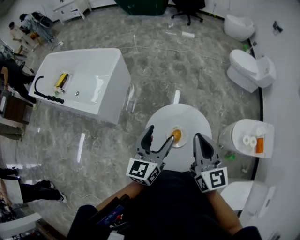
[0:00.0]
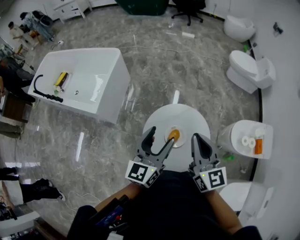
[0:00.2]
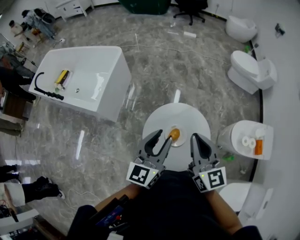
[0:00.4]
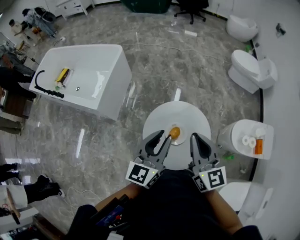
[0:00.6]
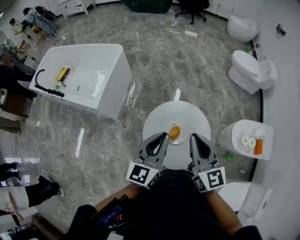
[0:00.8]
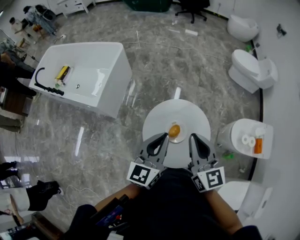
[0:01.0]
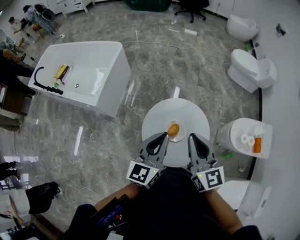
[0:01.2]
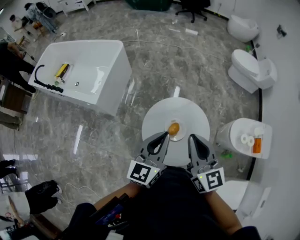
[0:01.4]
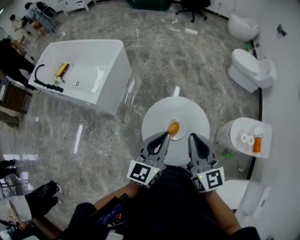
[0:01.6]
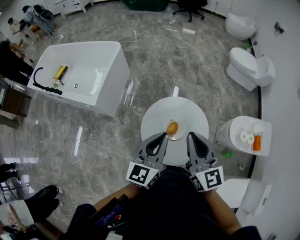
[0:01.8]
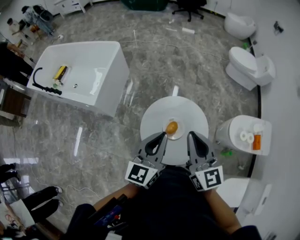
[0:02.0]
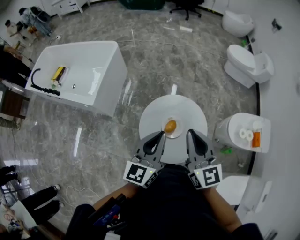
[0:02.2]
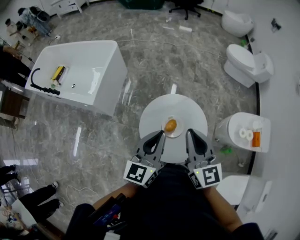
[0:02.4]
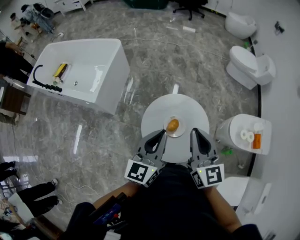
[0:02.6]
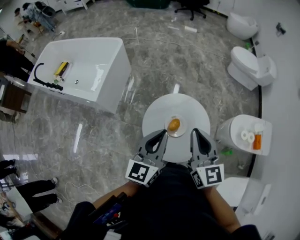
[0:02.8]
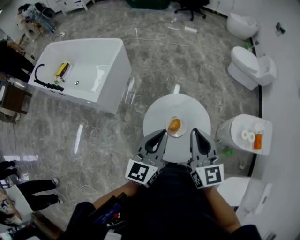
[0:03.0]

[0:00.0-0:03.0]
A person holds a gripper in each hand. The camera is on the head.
0:00.0 to 0:01.6: The left gripper heads backward, covering some 5 cm, and closes its fingers.
0:01.6 to 0:03.0: The grippers make only small movements.

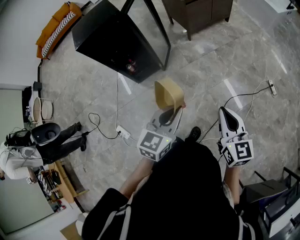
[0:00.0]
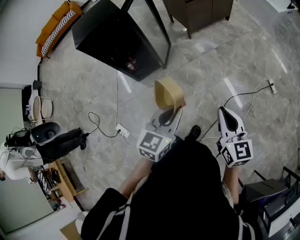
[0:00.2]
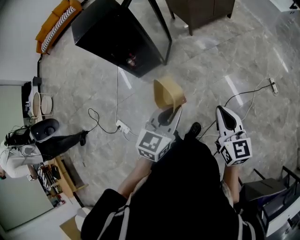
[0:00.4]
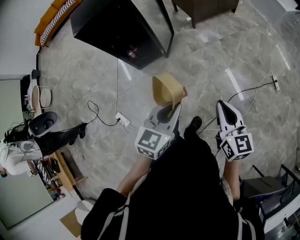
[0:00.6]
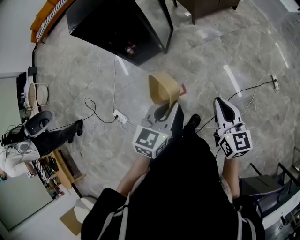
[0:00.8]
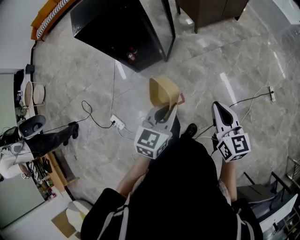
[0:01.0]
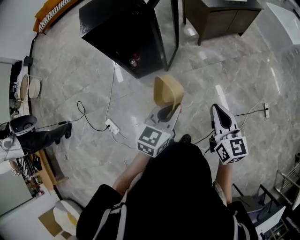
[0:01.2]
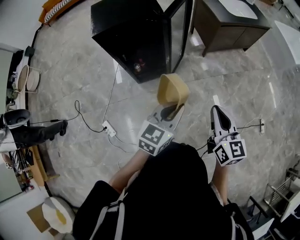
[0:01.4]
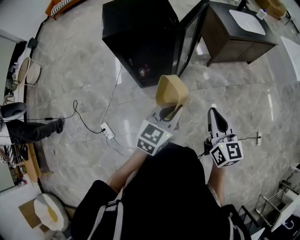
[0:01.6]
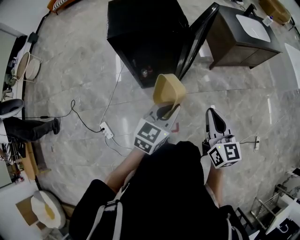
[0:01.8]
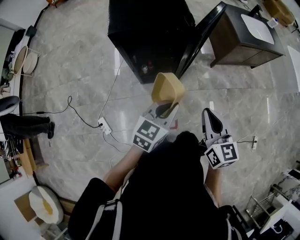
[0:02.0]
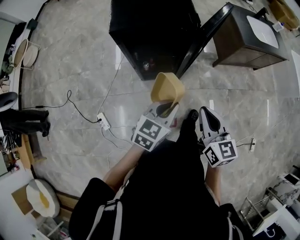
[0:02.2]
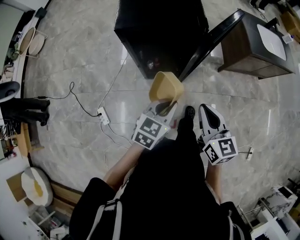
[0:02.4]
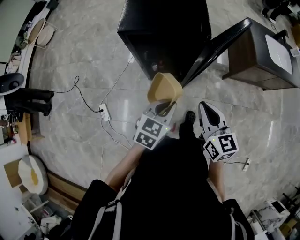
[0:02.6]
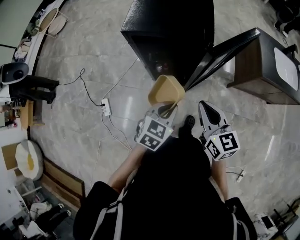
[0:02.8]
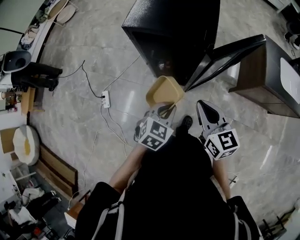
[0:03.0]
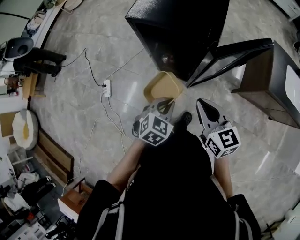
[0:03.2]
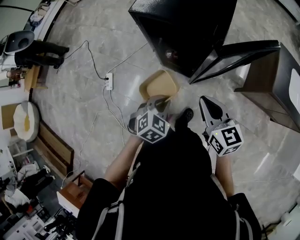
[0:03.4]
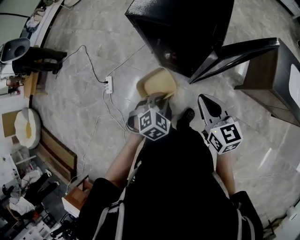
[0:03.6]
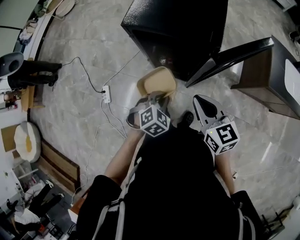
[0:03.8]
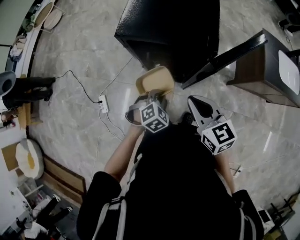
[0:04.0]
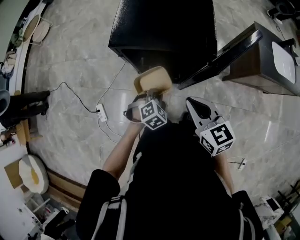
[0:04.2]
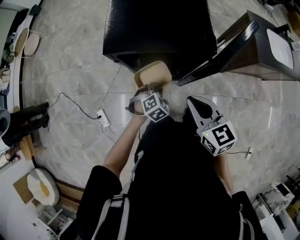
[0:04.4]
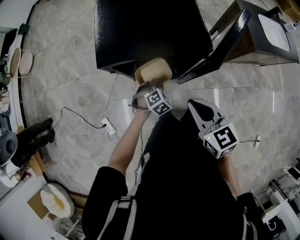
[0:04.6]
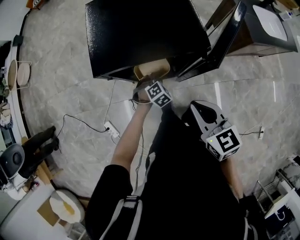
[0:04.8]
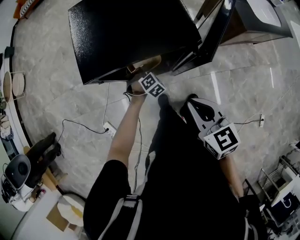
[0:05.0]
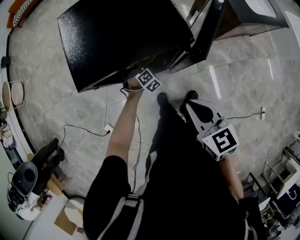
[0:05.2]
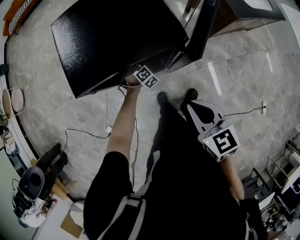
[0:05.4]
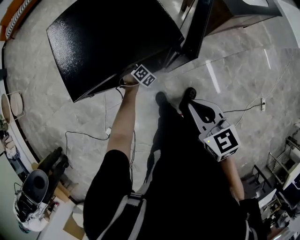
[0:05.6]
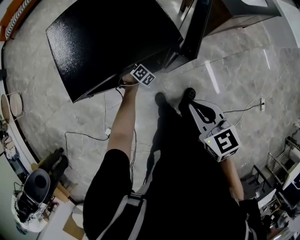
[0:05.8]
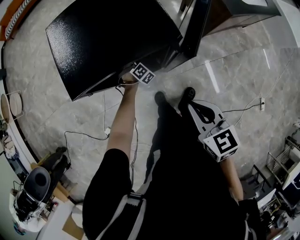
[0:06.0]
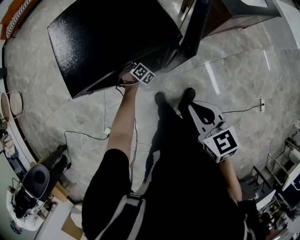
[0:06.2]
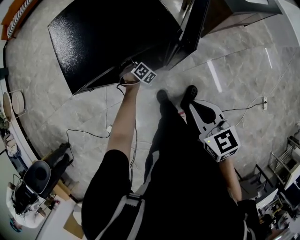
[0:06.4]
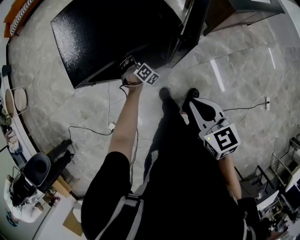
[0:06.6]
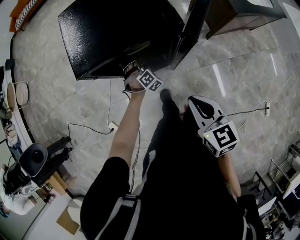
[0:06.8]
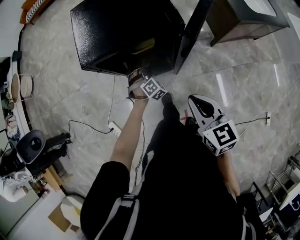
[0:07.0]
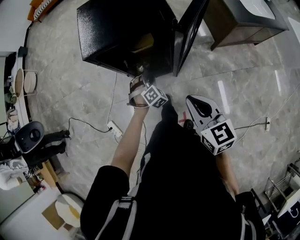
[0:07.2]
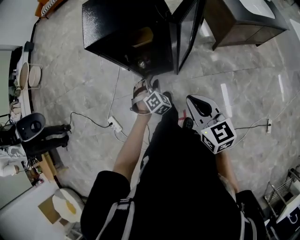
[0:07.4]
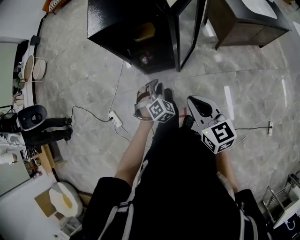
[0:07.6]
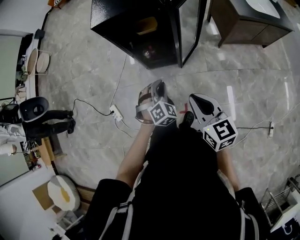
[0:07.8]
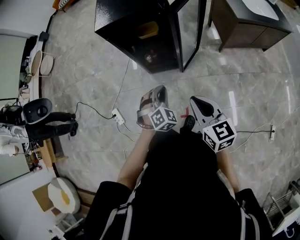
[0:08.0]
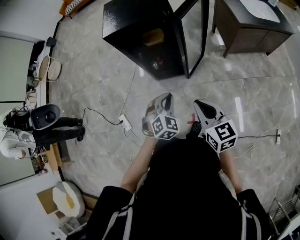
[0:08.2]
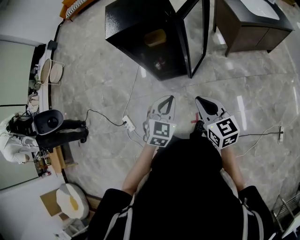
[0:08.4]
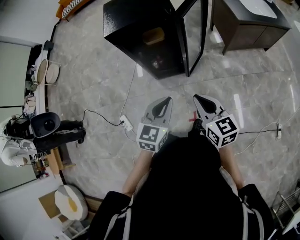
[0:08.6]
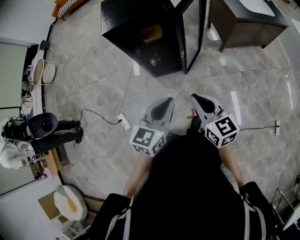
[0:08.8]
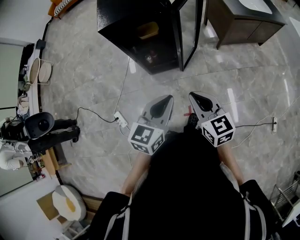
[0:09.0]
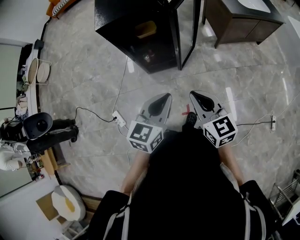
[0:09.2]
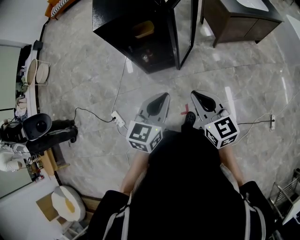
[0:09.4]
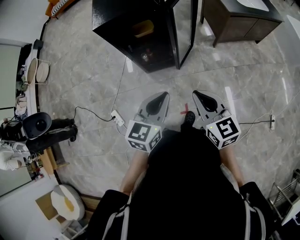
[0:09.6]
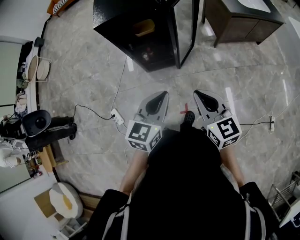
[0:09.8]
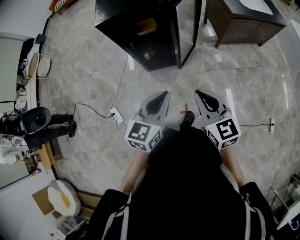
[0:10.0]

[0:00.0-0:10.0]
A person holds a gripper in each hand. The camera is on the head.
0:00.0 to 0:01.4: Both grippers travel together forward and to the left, approximately 25 cm.
0:01.4 to 0:02.8: The right gripper ends up some 30 cm from where it was, and swivels approximately 40 degrees, while the left gripper changes place by about 20 cm, and turns by approximately 30 degrees.
0:02.8 to 0:04.2: The right gripper goes roughly 10 cm forward and to the left; the left gripper is displaced downward and forward by roughly 20 cm, and swivels some 40 degrees.
0:04.2 to 0:05.8: The right gripper ends up about 5 cm from where it was, and turns by about 30 degrees. Meanwhile the left gripper moves forward and downward, about 30 cm, and turns by about 30 degrees.
0:05.8 to 0:07.2: The right gripper shifts approximately 10 cm backward. The left gripper is displaced backward and upward by roughly 25 cm, and opens its fingers.
0:07.2 to 0:08.6: The right gripper is displaced backward by some 15 cm. Meanwhile the left gripper goes some 40 cm backward and upward, rotates approximately 60 degrees, and closes up.
0:08.6 to 0:10.0: The right gripper changes place by roughly 5 cm.

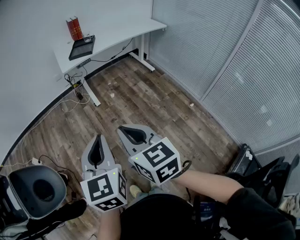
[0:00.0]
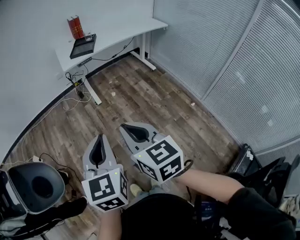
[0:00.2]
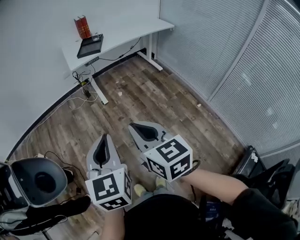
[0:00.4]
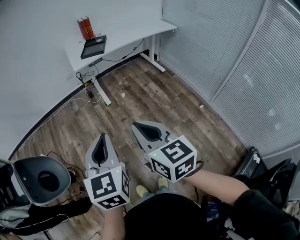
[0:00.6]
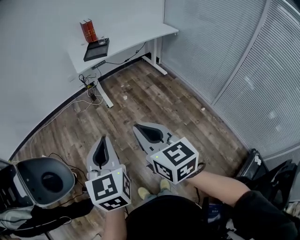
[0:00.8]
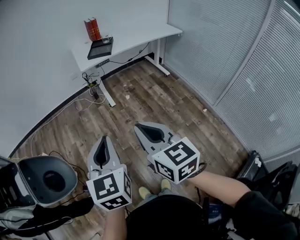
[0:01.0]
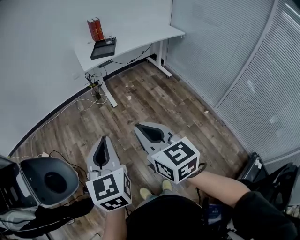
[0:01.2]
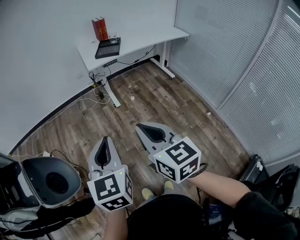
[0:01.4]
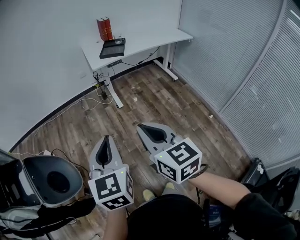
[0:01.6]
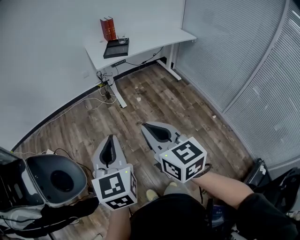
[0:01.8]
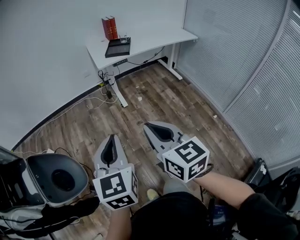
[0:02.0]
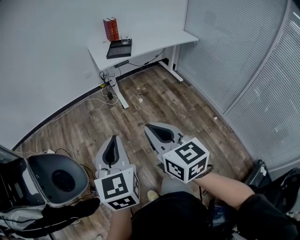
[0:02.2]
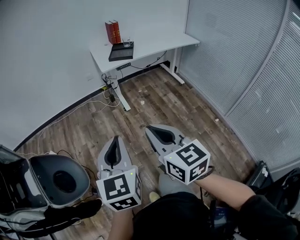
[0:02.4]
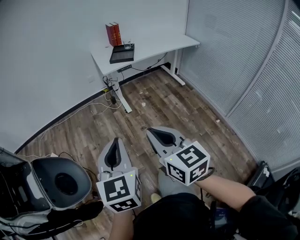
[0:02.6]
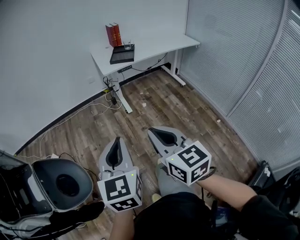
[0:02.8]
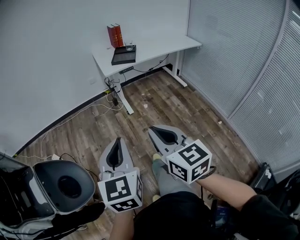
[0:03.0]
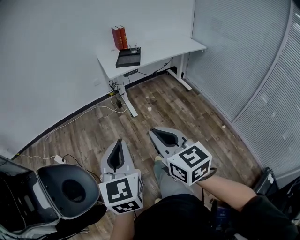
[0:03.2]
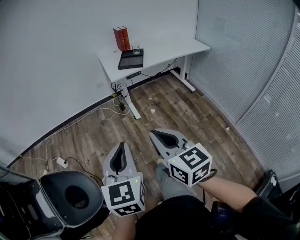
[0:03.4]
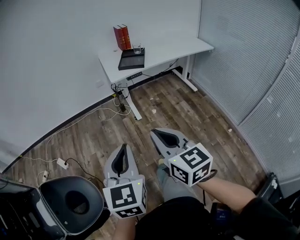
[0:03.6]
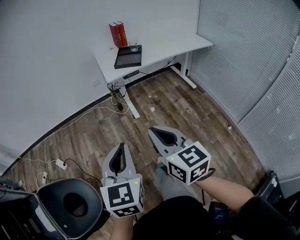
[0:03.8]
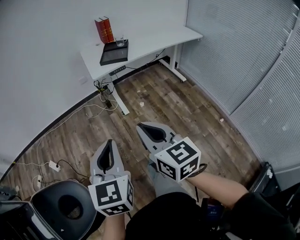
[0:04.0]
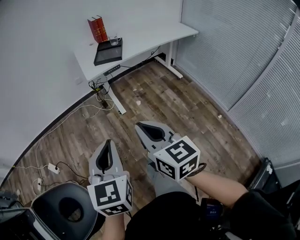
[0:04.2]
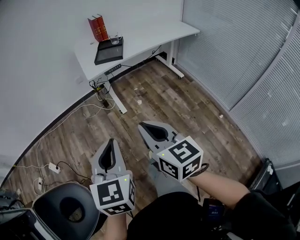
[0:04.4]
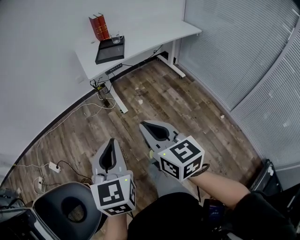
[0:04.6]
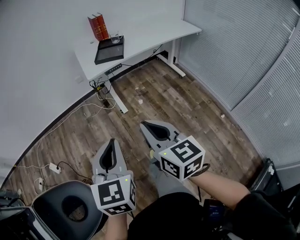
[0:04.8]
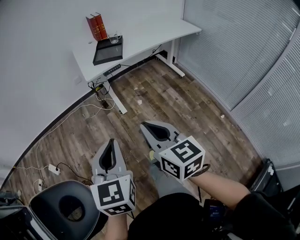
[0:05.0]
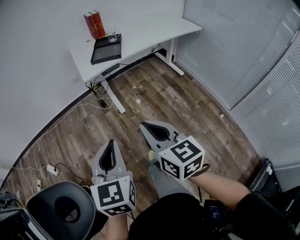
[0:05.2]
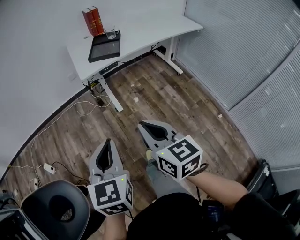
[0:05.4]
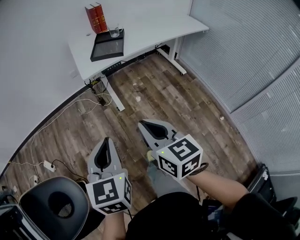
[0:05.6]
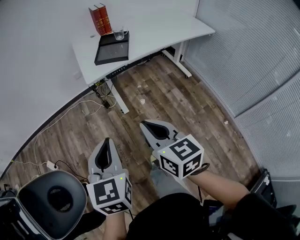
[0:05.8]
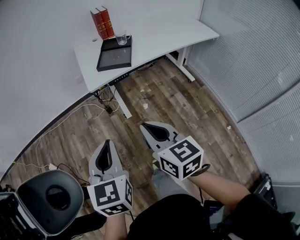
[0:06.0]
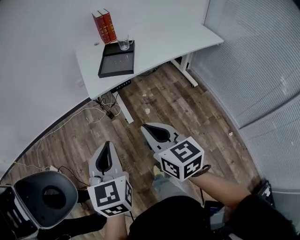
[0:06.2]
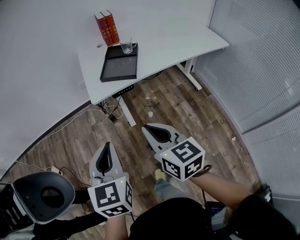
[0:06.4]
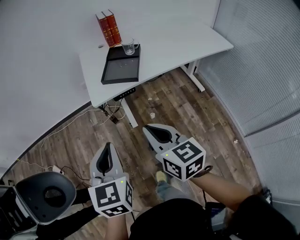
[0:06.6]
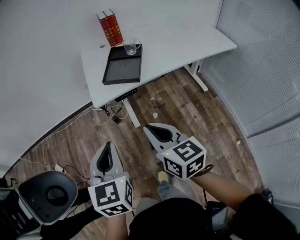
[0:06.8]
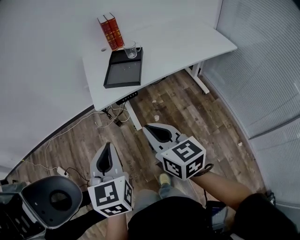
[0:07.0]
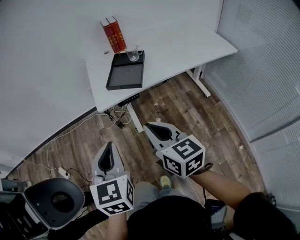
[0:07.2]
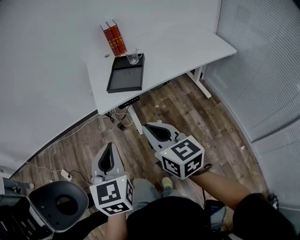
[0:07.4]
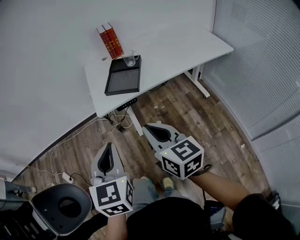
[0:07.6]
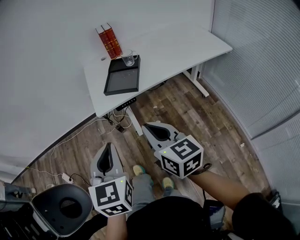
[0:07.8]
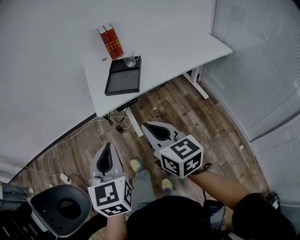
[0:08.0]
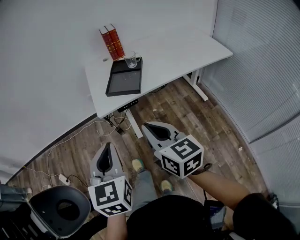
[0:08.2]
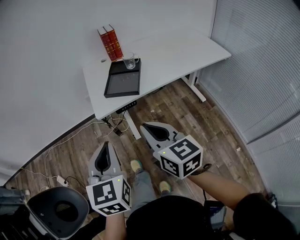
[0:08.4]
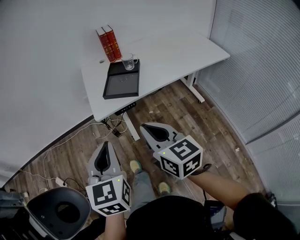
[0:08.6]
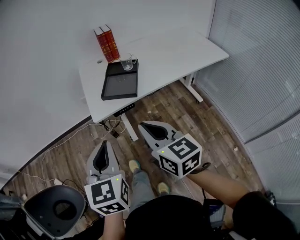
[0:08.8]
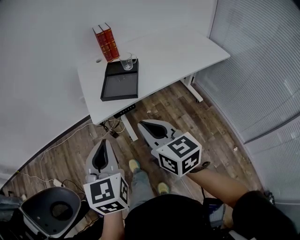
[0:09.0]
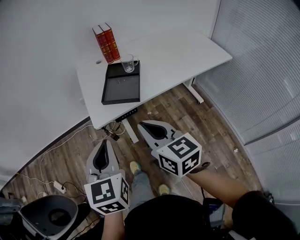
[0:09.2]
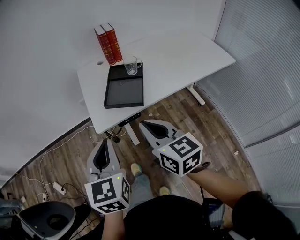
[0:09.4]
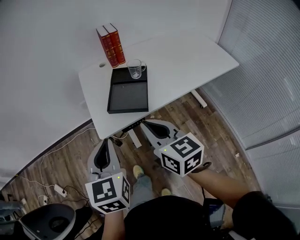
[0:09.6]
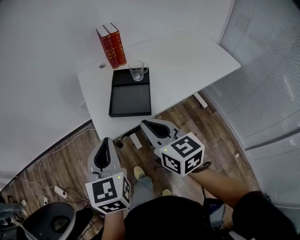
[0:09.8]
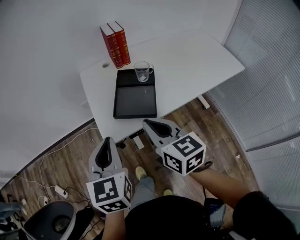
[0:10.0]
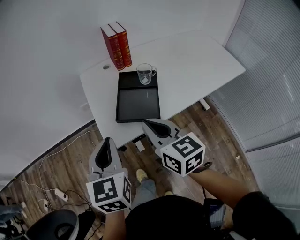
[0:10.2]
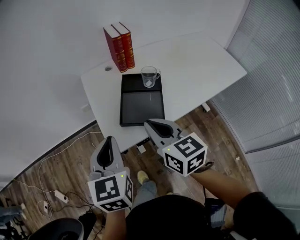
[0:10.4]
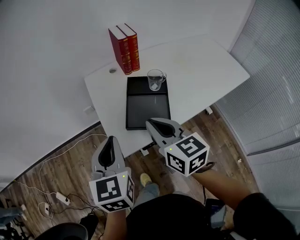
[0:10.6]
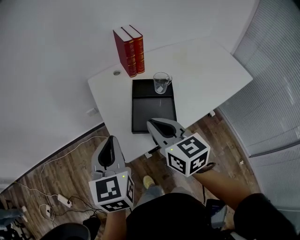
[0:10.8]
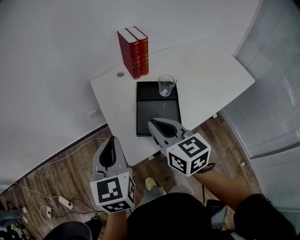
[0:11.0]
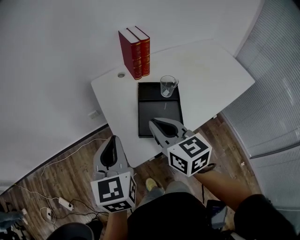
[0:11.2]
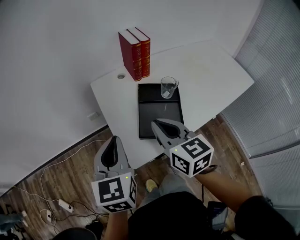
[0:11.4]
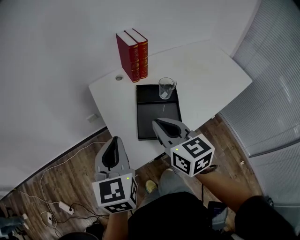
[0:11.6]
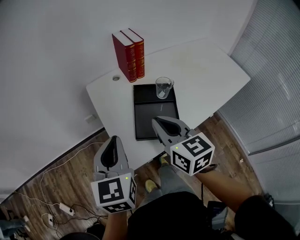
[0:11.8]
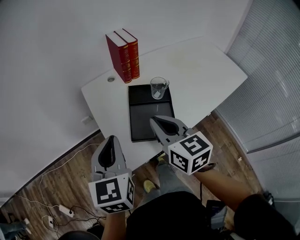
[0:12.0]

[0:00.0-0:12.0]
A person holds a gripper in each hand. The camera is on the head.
0:00.0 to 0:01.6: The two grippers go some 10 cm to the left.
0:01.6 to 0:03.0: The grippers make only small movements.
0:03.0 to 0:04.4: The two grippers go approximately 15 cm forward and to the right.
0:04.4 to 0:06.0: The grippers both shift forward by some 20 cm.
0:06.0 to 0:07.6: Both grippers move forward and to the right, roughly 10 cm.
0:07.6 to 0:09.0: Both grippers travel together forward, approximately 5 cm.
0:09.0 to 0:10.4: The grippers both shift forward by some 25 cm.
0:10.4 to 0:12.0: The grippers both shift forward by approximately 10 cm.
